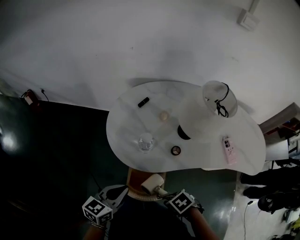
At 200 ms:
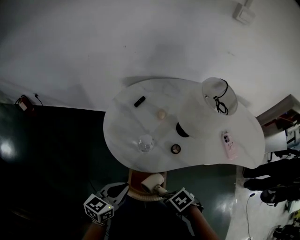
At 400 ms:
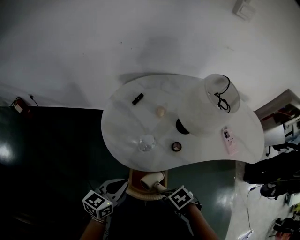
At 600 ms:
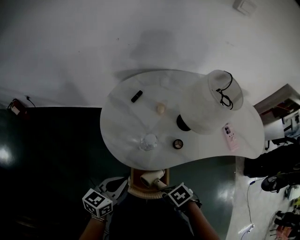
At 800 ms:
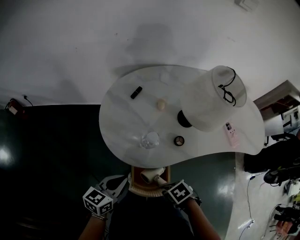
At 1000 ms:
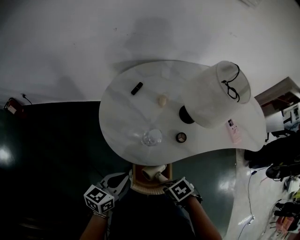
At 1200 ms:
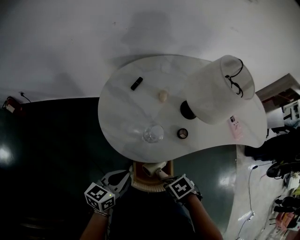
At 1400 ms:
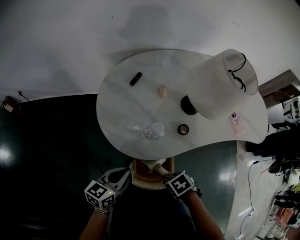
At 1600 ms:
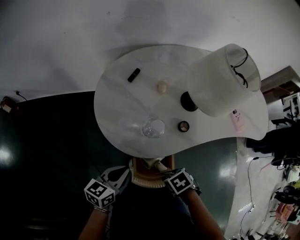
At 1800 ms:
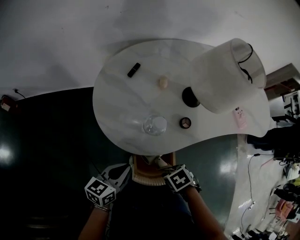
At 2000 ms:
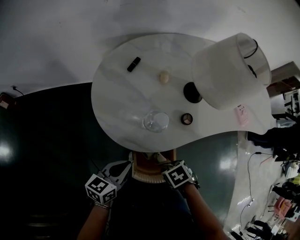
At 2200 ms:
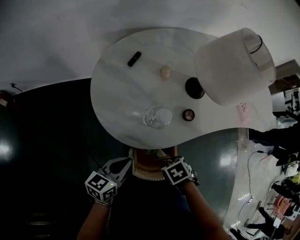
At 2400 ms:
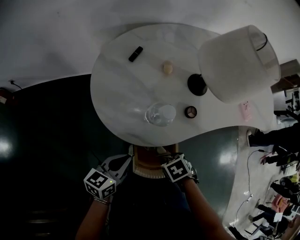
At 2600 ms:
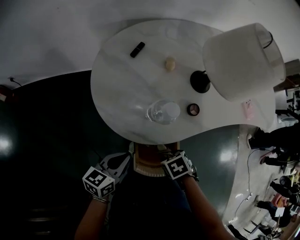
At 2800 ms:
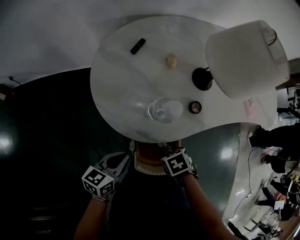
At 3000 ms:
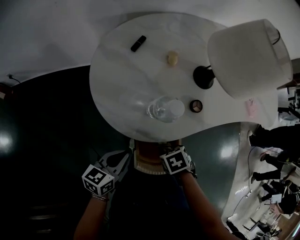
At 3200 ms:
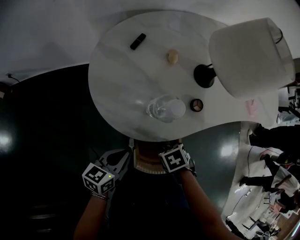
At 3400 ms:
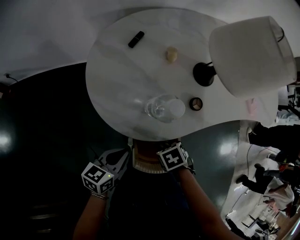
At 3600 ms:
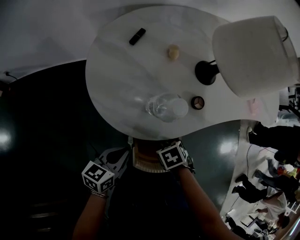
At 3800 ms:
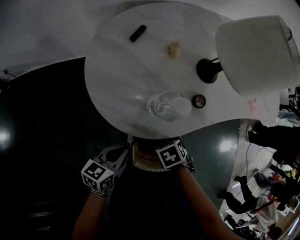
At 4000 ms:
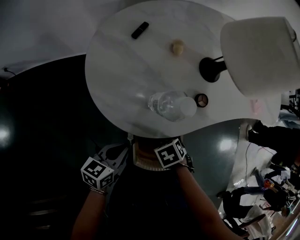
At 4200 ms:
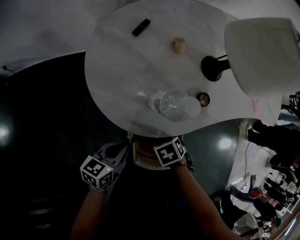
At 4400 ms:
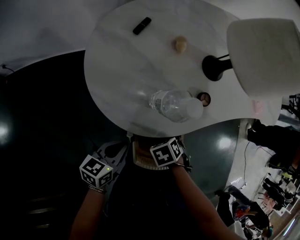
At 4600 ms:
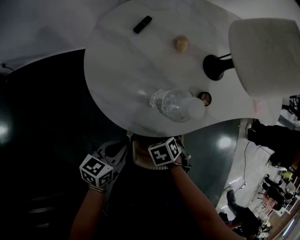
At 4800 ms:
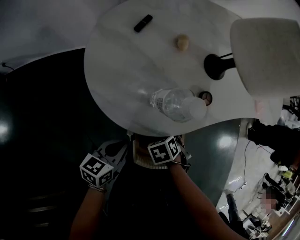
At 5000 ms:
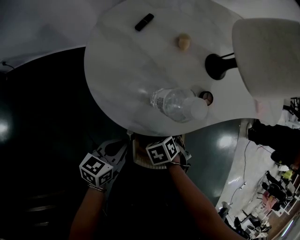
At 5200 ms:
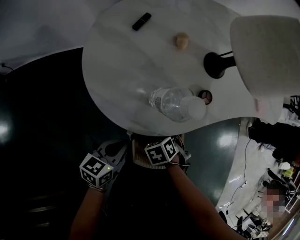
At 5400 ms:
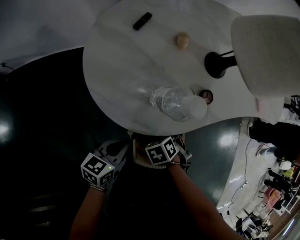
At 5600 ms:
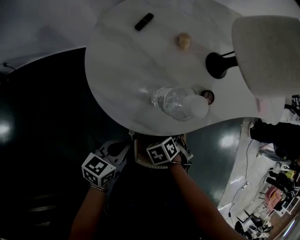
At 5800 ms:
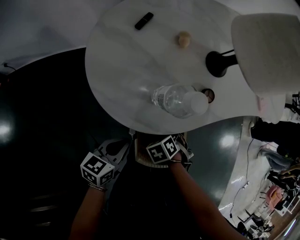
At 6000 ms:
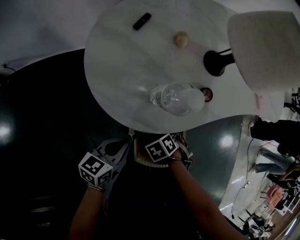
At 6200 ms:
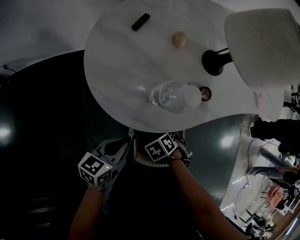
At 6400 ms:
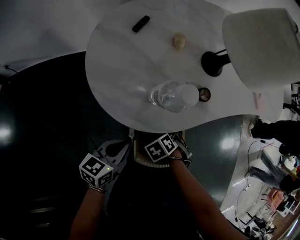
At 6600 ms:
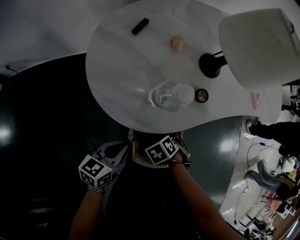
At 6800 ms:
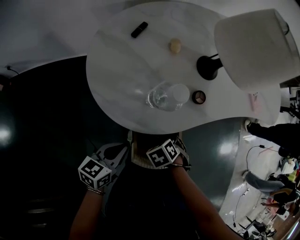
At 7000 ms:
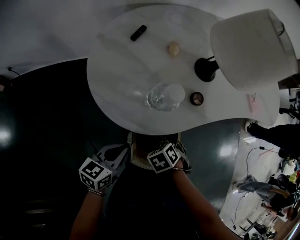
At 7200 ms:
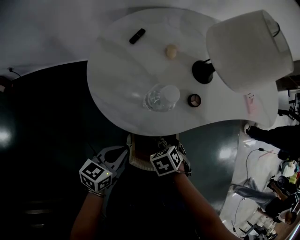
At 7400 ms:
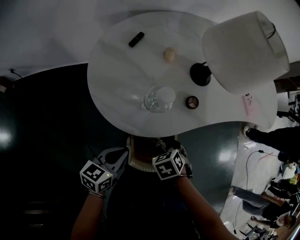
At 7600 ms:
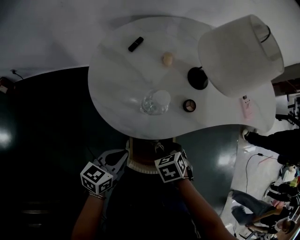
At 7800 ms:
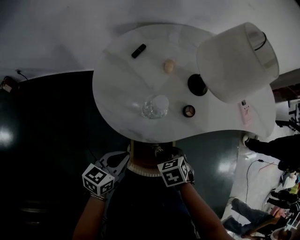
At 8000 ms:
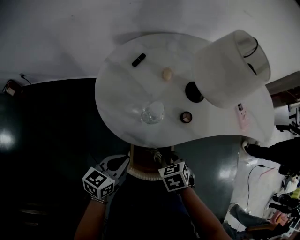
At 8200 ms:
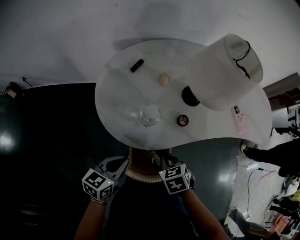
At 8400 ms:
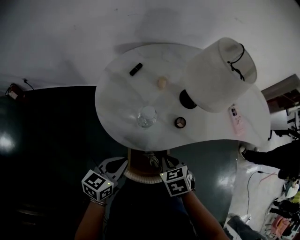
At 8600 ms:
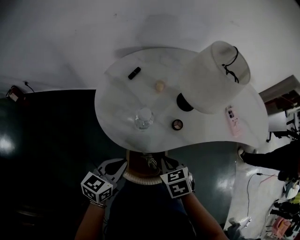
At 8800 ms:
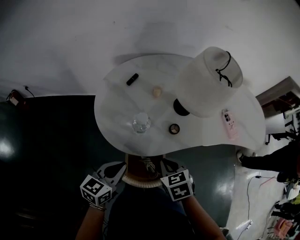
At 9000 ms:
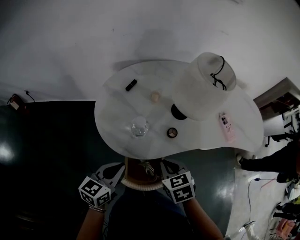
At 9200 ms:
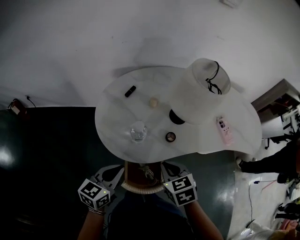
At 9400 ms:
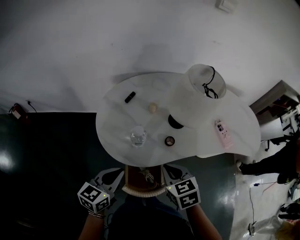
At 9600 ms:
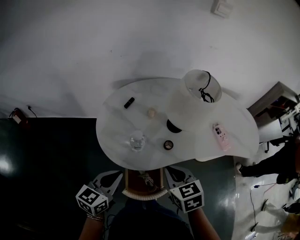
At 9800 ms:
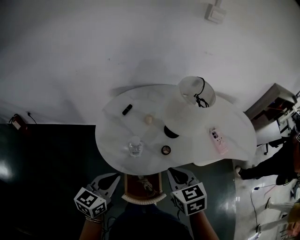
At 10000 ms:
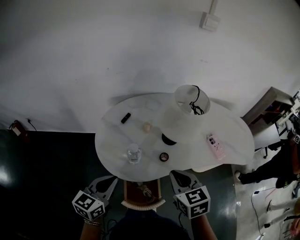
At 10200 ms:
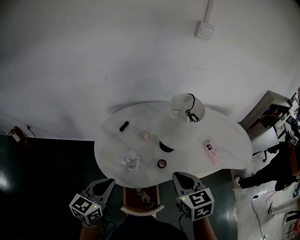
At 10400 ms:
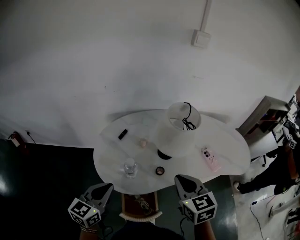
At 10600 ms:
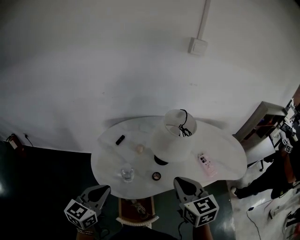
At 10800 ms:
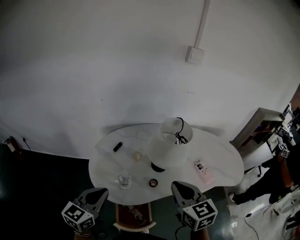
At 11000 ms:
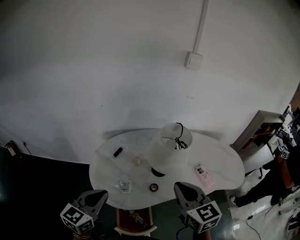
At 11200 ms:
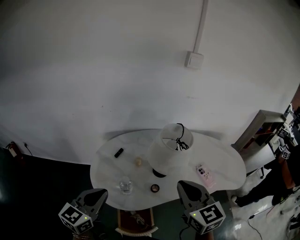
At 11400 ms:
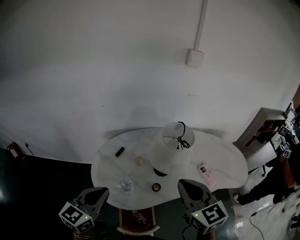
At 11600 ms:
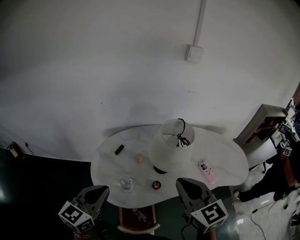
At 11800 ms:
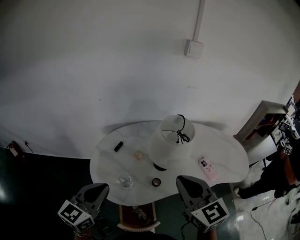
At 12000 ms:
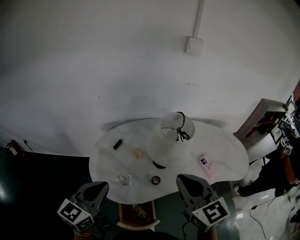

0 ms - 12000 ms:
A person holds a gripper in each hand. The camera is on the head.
0 ms - 1600 ms: The two grippers go approximately 10 cm downward.
1600 ms - 3000 ms: The grippers both shift downward by some 5 cm.
3000 ms - 4400 ms: The grippers move only a little.
4400 ms - 6000 ms: The grippers move only a little.
6000 ms - 7600 ms: The right gripper heads upward, covering approximately 10 cm, while the left gripper moves approximately 5 cm.
7600 ms - 9000 ms: The grippers both shift upward by some 15 cm. The right gripper changes its angle by about 20 degrees, and closes its fingers.
9000 ms - 10400 ms: The left gripper moves upward, approximately 10 cm. The right gripper heads upward and to the right, covering roughly 20 cm, and rotates about 30 degrees.
10400 ms - 12000 ms: The grippers both shift upward by roughly 10 cm. The right gripper swivels approximately 20 degrees.

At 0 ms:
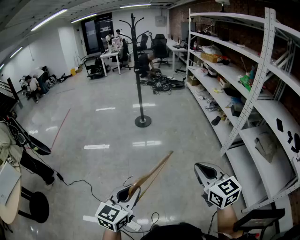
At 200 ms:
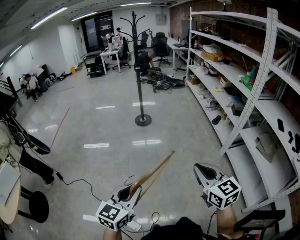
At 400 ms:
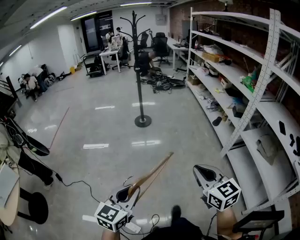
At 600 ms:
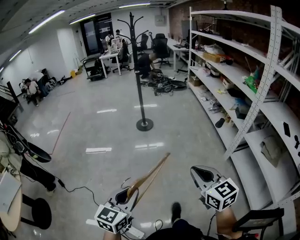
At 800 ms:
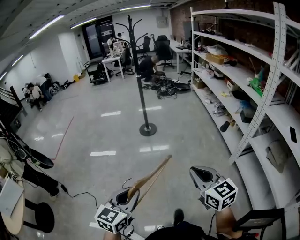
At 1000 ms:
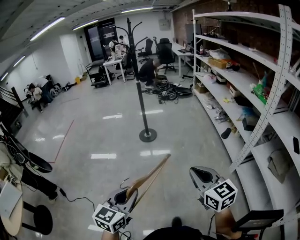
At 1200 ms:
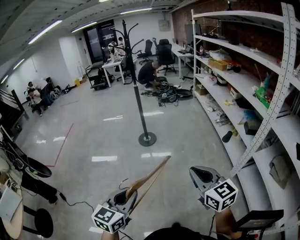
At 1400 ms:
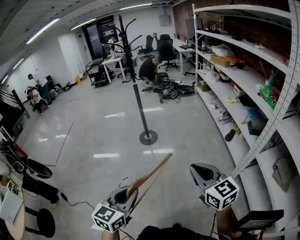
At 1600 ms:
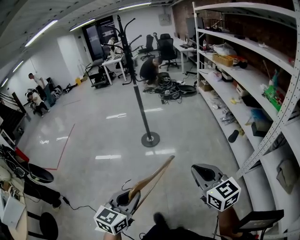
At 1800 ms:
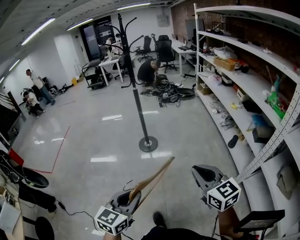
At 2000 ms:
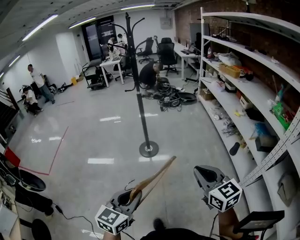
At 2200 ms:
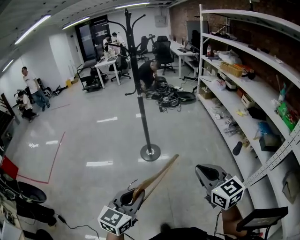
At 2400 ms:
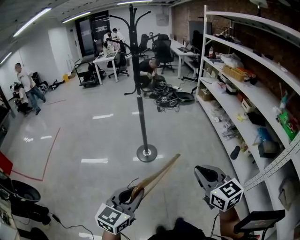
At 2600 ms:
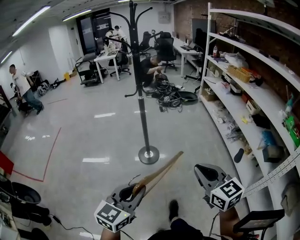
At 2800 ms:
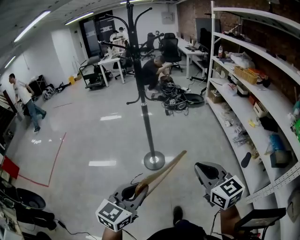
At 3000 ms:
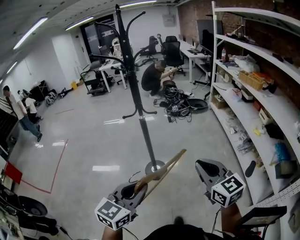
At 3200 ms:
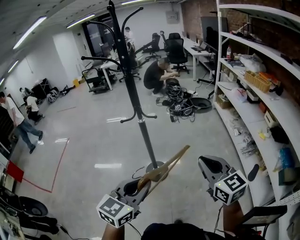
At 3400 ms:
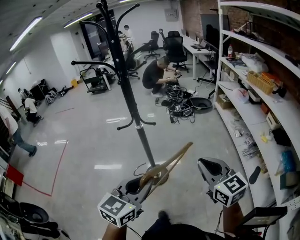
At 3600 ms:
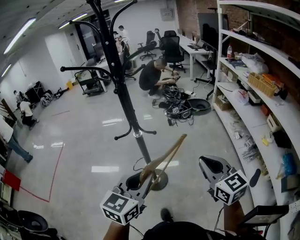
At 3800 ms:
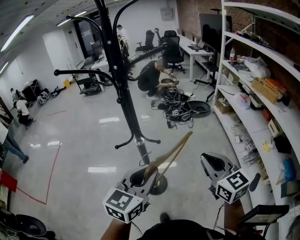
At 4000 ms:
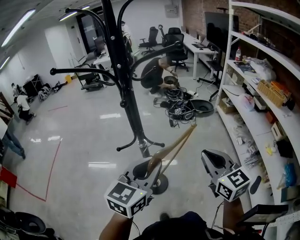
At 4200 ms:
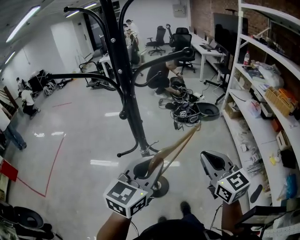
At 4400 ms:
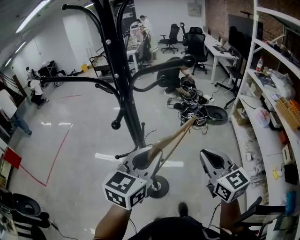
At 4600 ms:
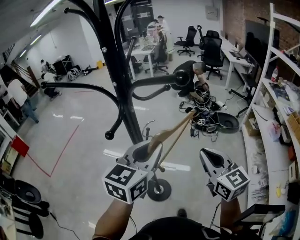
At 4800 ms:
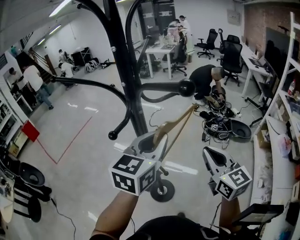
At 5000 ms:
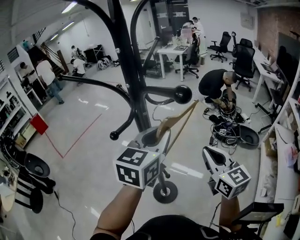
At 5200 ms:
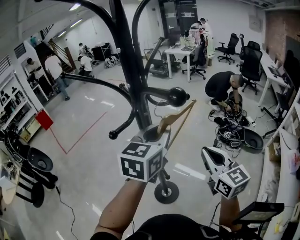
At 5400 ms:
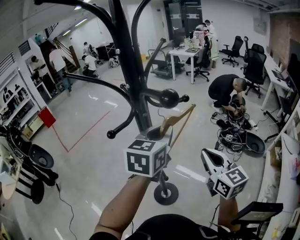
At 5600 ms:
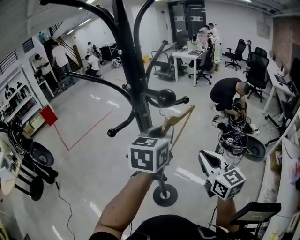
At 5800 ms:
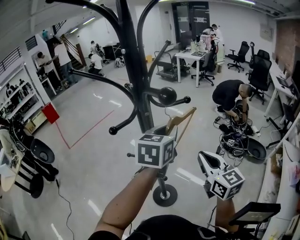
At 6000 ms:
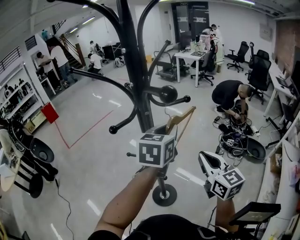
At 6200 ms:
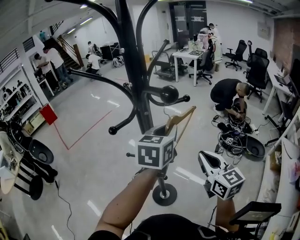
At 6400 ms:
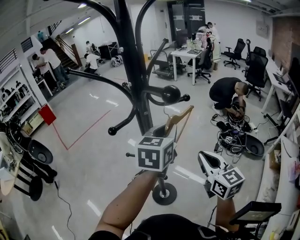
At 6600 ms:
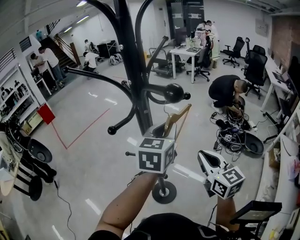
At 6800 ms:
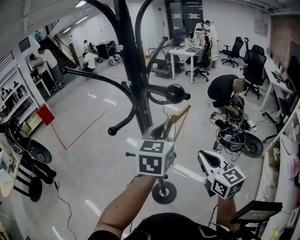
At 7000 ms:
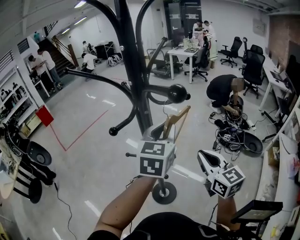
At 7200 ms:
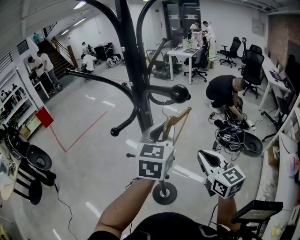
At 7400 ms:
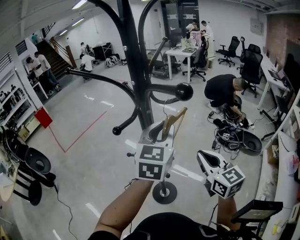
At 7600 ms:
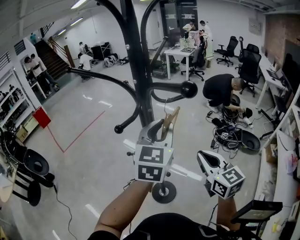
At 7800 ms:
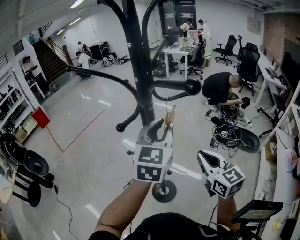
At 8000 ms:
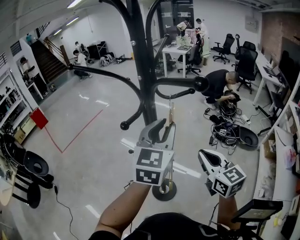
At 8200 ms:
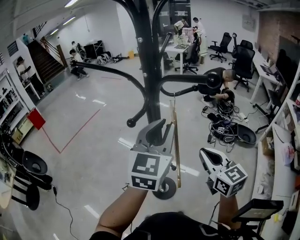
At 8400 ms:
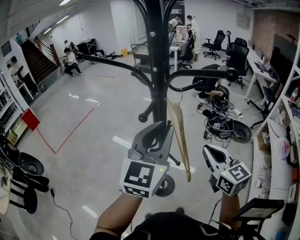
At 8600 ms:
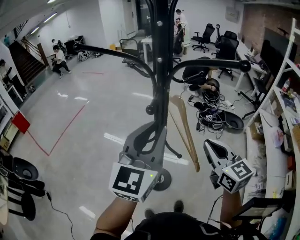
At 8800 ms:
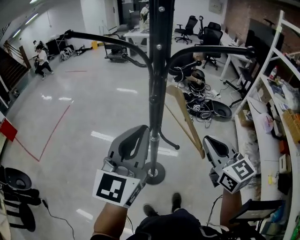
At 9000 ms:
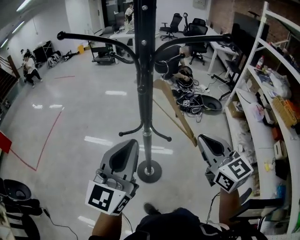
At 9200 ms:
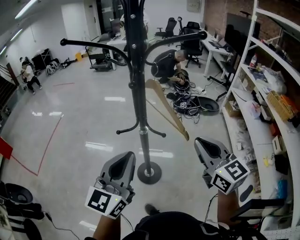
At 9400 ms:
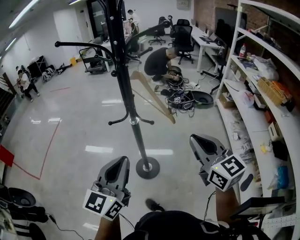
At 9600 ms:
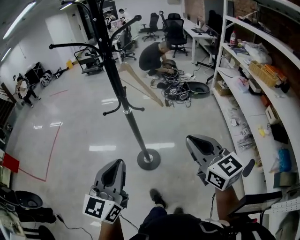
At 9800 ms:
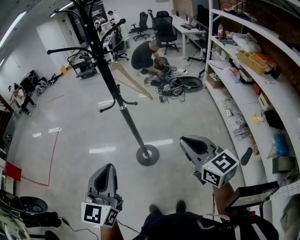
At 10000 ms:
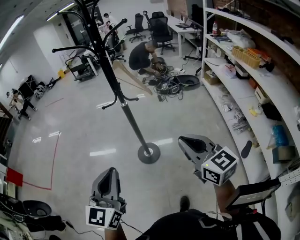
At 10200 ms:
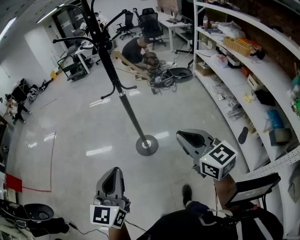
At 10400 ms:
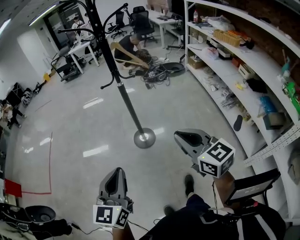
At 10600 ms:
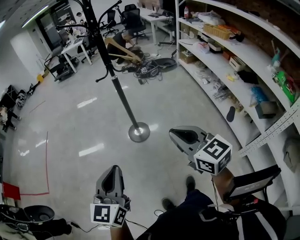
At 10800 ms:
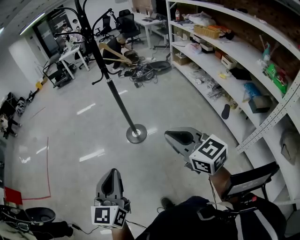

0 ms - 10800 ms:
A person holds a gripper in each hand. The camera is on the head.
0 ms - 1600 ms: Both grippers move forward, roughly 30 cm.
1600 ms - 3000 ms: The two grippers travel together, forward, some 50 cm.
3000 ms - 4600 ms: The two grippers travel together, forward, about 40 cm. The left gripper rotates roughly 20 degrees.
4600 ms - 6200 ms: The grippers both shift forward by about 10 cm. The right gripper rotates roughly 20 degrees. Meanwhile the left gripper turns by about 30 degrees.
6200 ms - 7800 ms: The left gripper changes place by roughly 5 cm.
7800 ms - 9200 ms: The left gripper moves about 25 cm, and swivels some 40 degrees, while the right gripper ends up roughly 15 cm from where it was, and changes its angle by some 20 degrees.
9200 ms - 10800 ms: The two grippers travel together, backward, approximately 40 cm.

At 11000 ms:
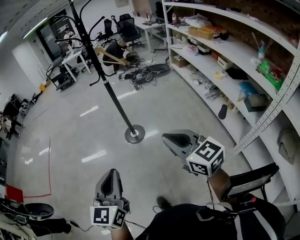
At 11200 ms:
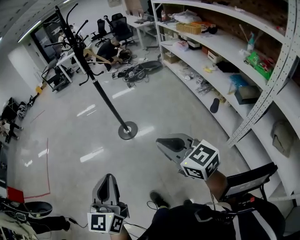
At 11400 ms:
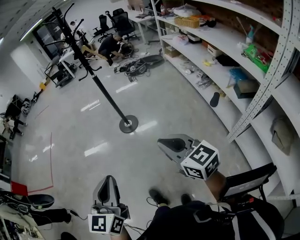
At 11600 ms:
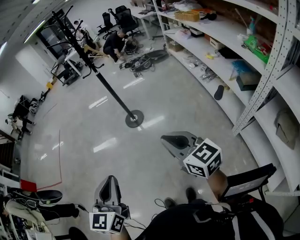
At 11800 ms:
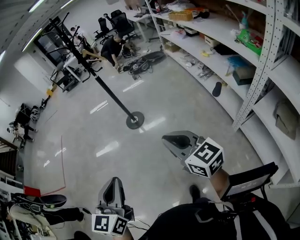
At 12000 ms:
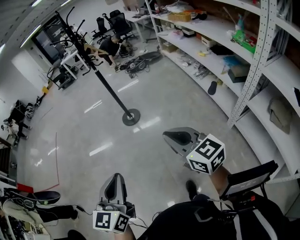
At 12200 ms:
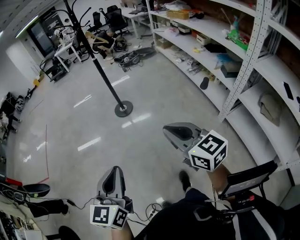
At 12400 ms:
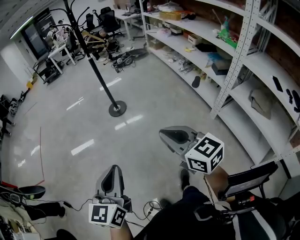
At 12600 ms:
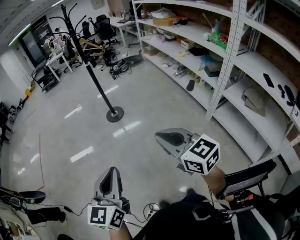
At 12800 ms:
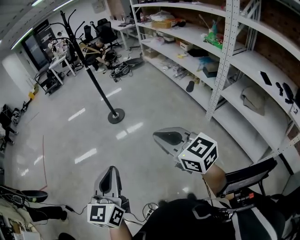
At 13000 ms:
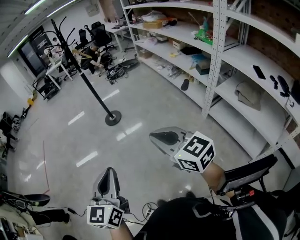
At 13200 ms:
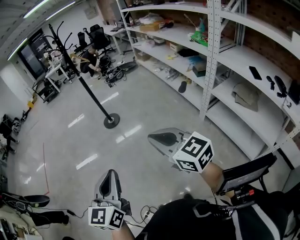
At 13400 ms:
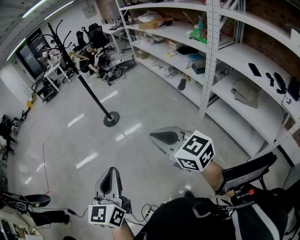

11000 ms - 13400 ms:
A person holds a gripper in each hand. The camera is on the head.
11000 ms - 12200 ms: Both grippers move backward, roughly 25 cm.
12200 ms - 13400 ms: The left gripper heads backward and to the right, covering some 15 cm; the right gripper moves backward, about 15 cm.
